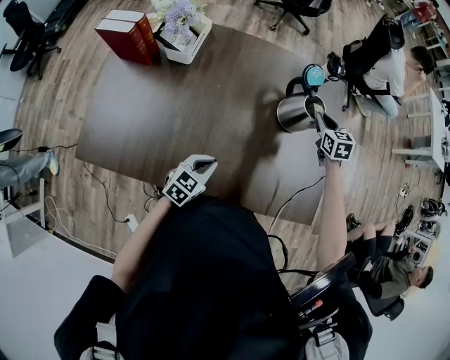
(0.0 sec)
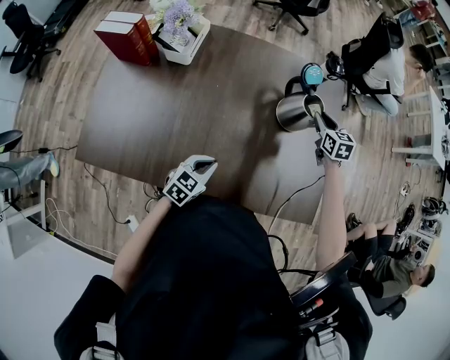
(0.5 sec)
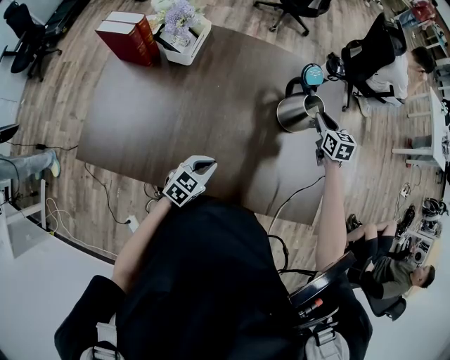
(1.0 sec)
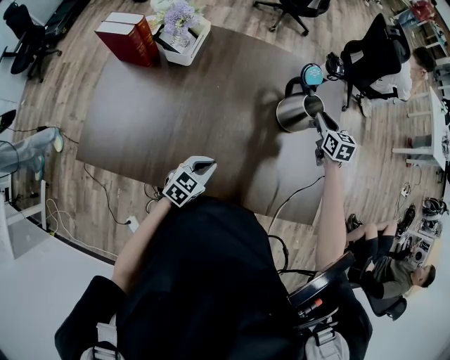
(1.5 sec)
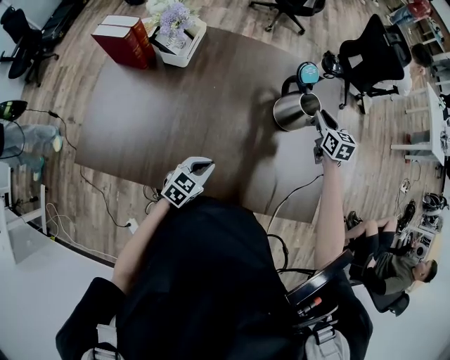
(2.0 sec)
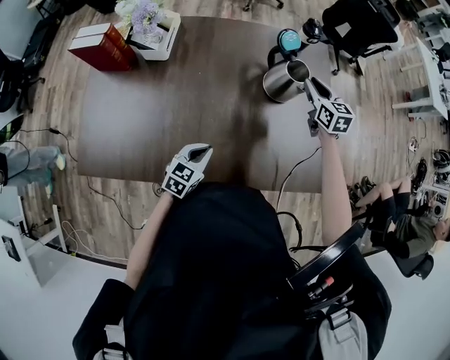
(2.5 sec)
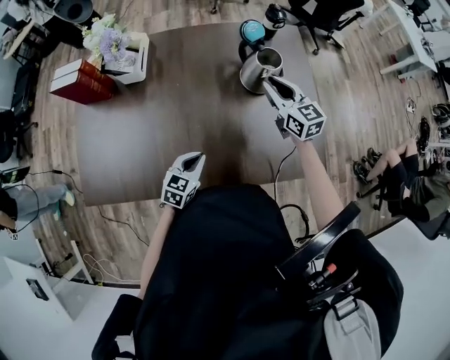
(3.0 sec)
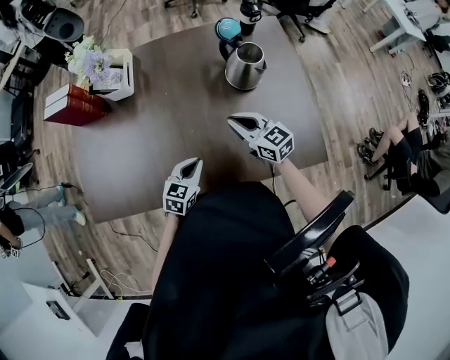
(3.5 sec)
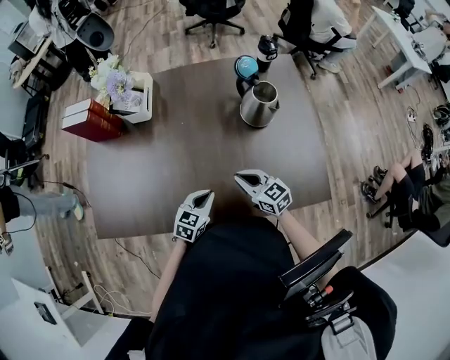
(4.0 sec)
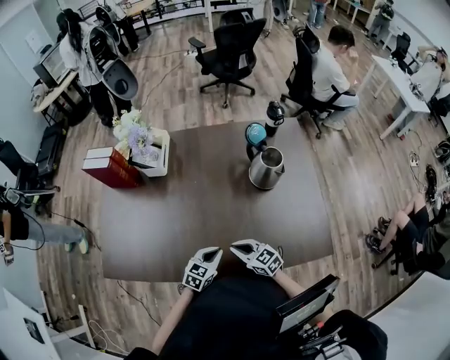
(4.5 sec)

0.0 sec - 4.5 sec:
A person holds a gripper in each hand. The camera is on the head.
0.0 sec - 2.0 sec: The grippers move only a little.
2.0 sec - 4.5 sec: The right gripper shifts about 40 cm backward and to the left, and rotates about 40 degrees.

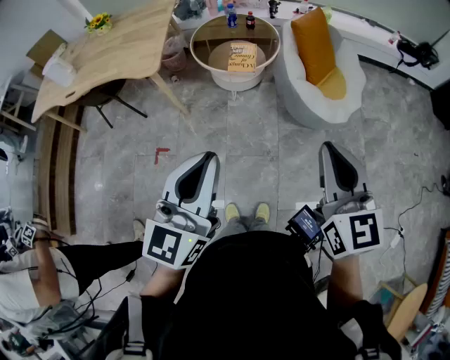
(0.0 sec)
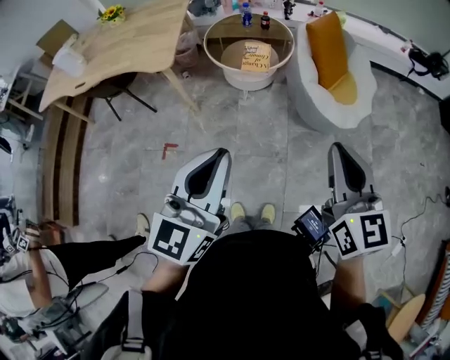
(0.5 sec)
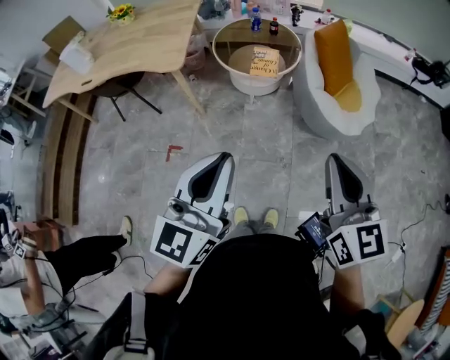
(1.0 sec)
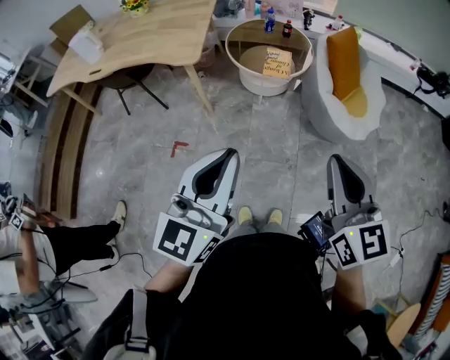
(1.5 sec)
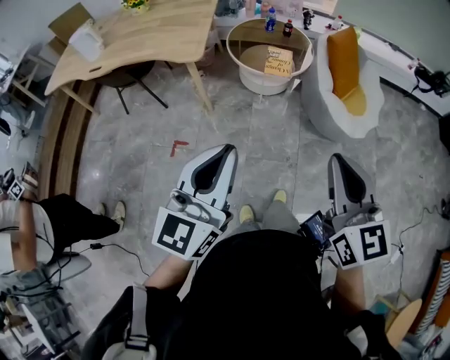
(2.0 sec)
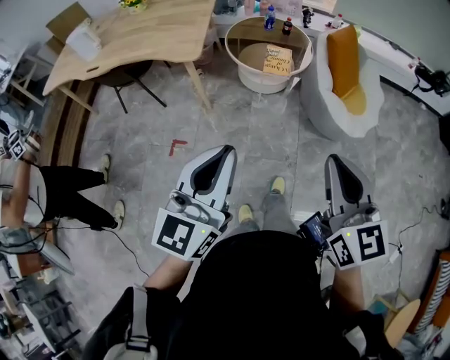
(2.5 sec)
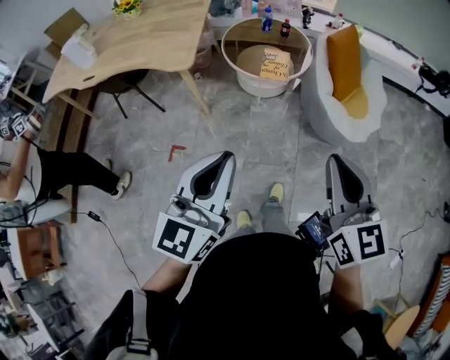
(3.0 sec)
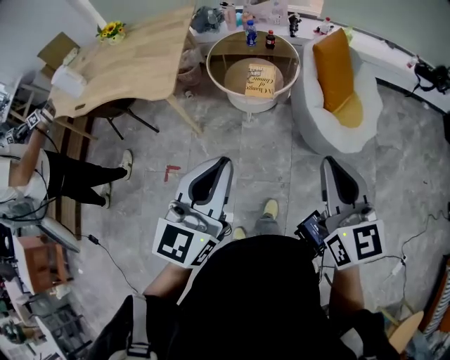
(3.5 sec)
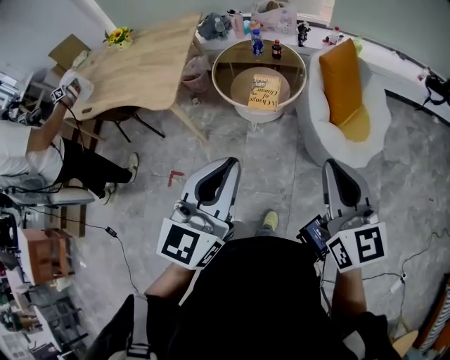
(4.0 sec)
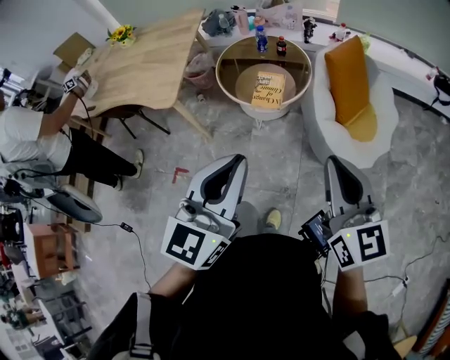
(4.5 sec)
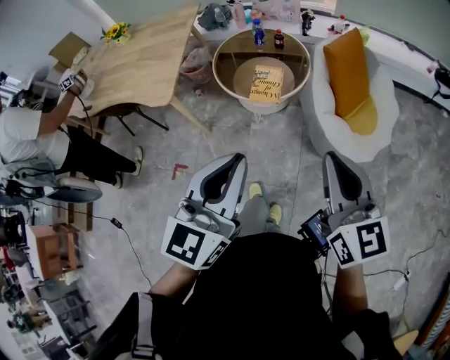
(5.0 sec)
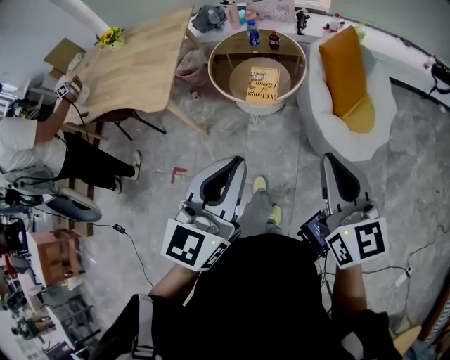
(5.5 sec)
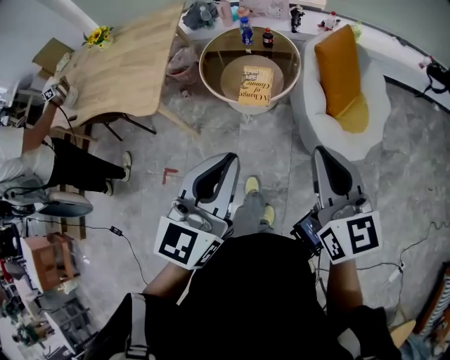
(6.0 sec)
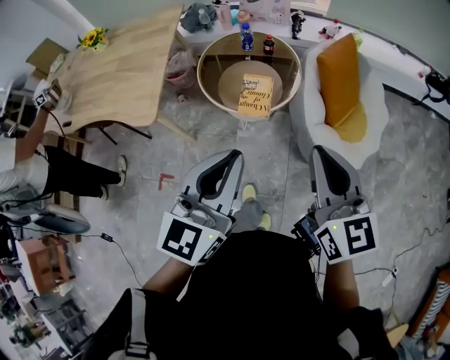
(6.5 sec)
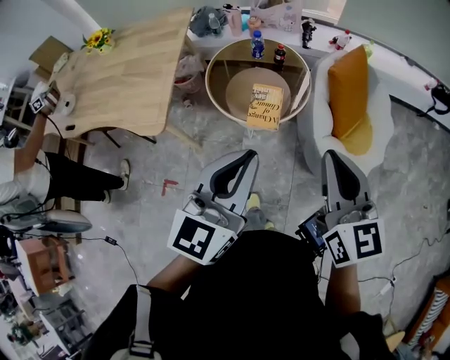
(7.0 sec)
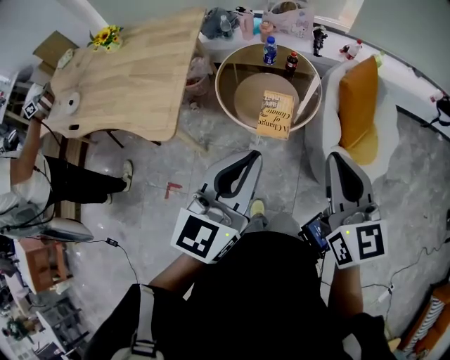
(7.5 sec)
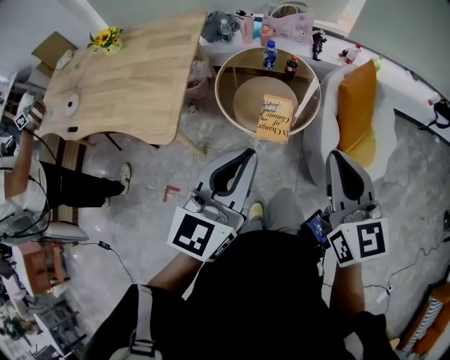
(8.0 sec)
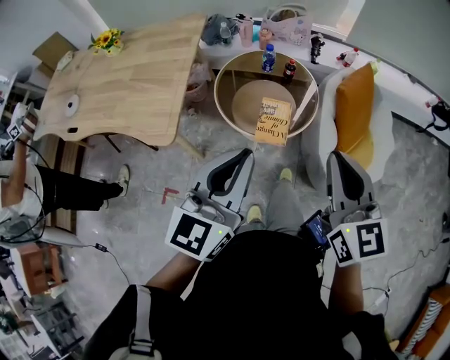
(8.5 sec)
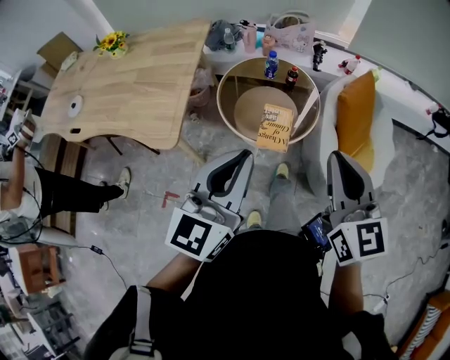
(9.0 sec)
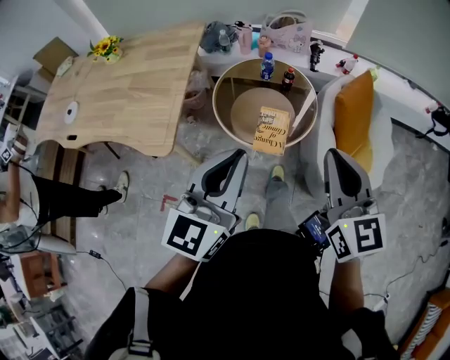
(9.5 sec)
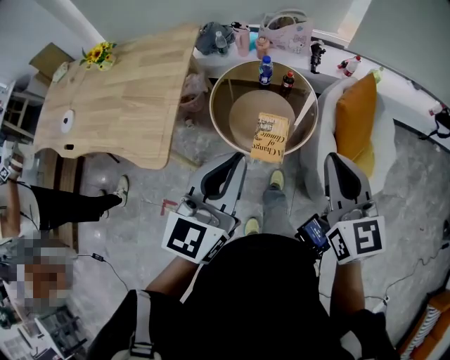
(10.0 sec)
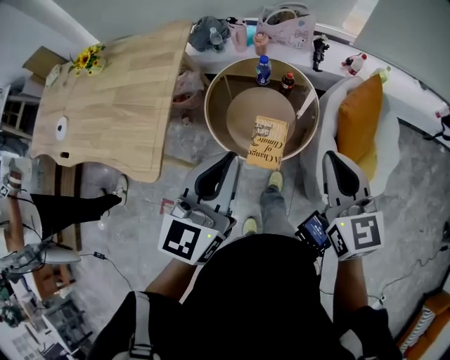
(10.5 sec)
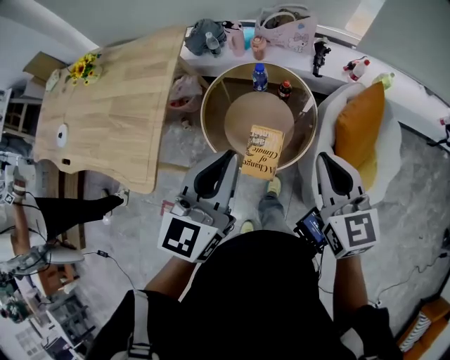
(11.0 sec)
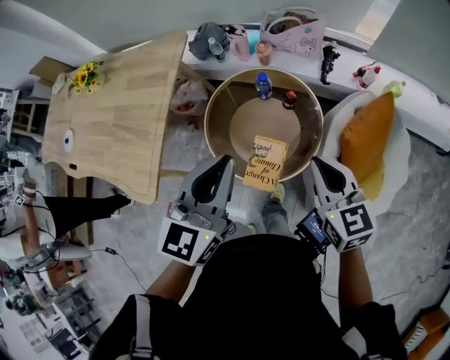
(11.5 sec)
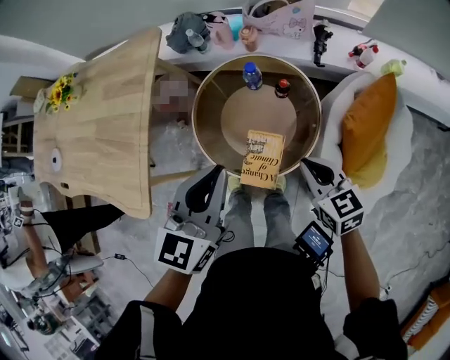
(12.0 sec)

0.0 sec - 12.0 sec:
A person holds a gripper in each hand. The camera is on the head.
0.0 sec - 2.0 sec: The grippers both shift to the left by roughly 15 cm.
2.0 sec - 4.0 sec: Both grippers travel together forward and to the right, some 25 cm.
4.0 sec - 6.0 sec: Both grippers move forward, approximately 10 cm.
6.0 sec - 8.0 sec: Both grippers travel together forward and to the left, approximately 20 cm.
8.0 sec - 10.0 sec: Both grippers move forward, roughly 10 cm.
10.0 sec - 12.0 sec: The grippers both shift forward and downward by some 30 cm. The right gripper turns by approximately 30 degrees.

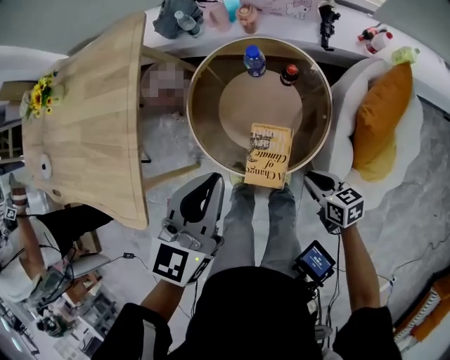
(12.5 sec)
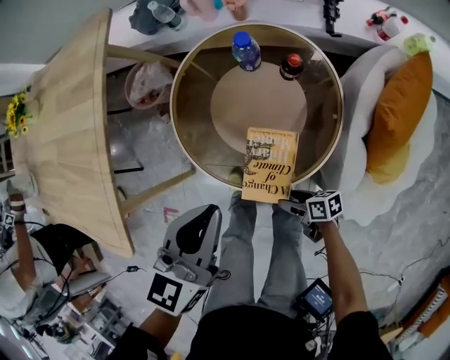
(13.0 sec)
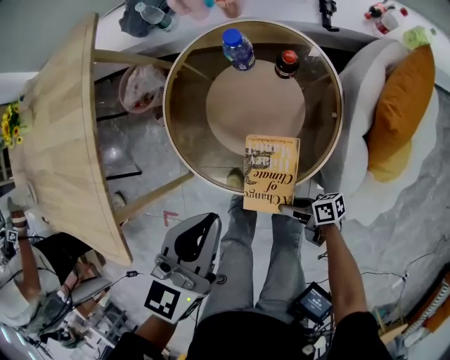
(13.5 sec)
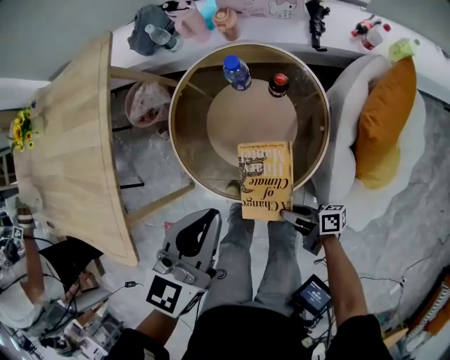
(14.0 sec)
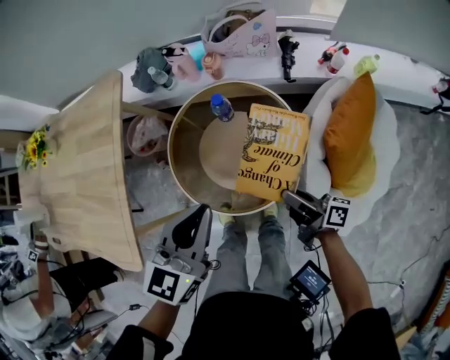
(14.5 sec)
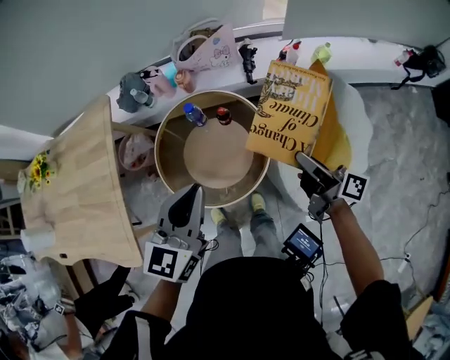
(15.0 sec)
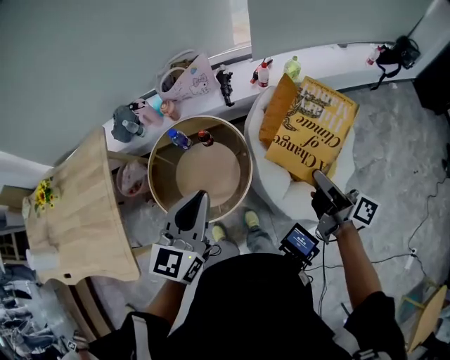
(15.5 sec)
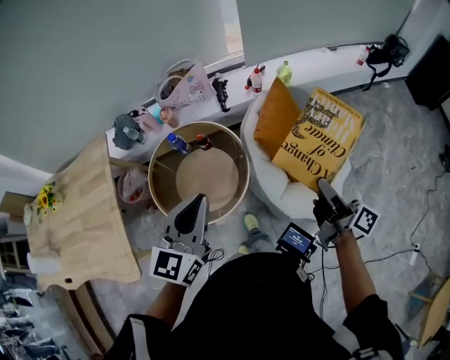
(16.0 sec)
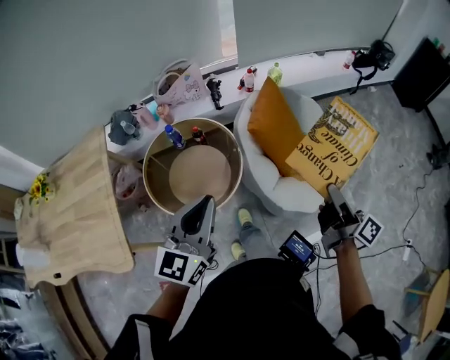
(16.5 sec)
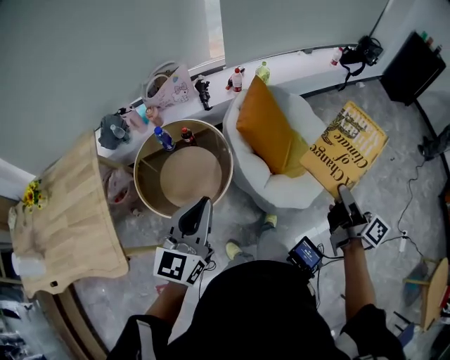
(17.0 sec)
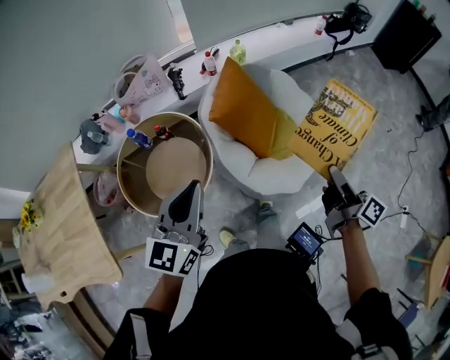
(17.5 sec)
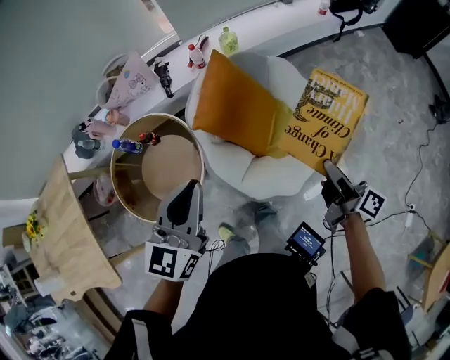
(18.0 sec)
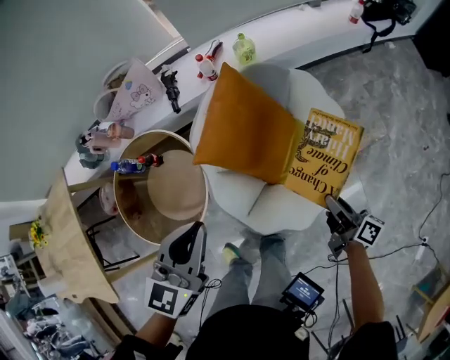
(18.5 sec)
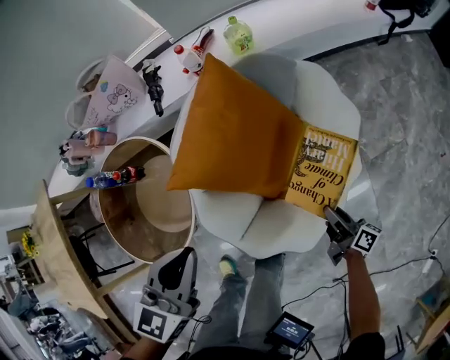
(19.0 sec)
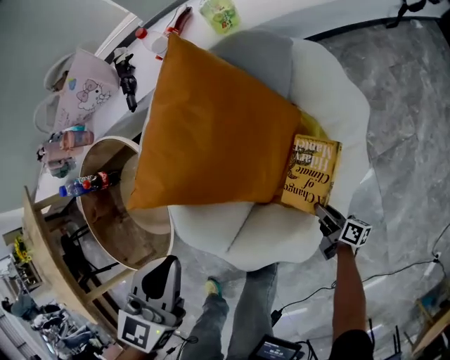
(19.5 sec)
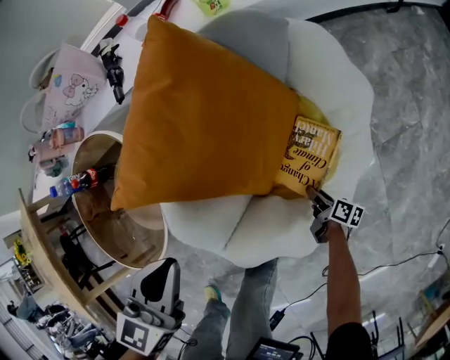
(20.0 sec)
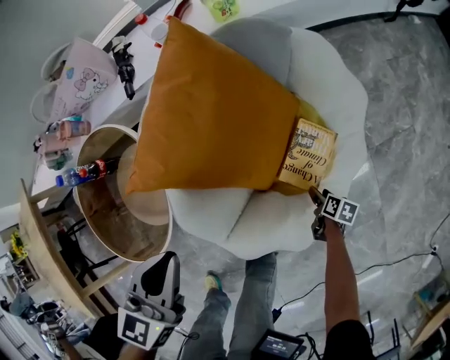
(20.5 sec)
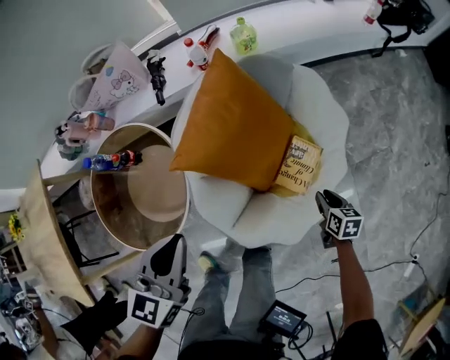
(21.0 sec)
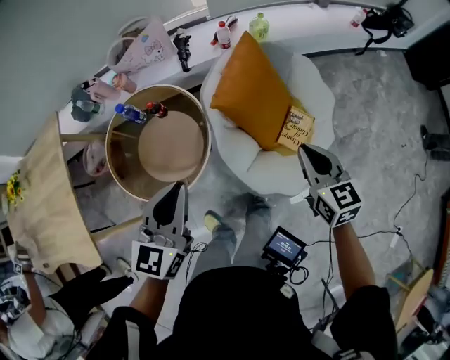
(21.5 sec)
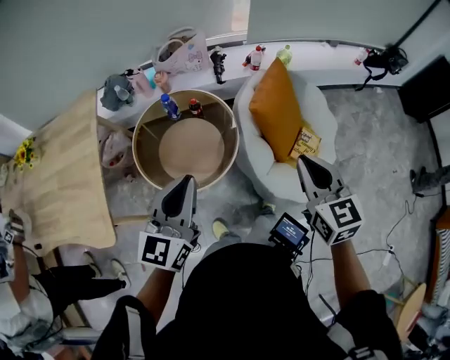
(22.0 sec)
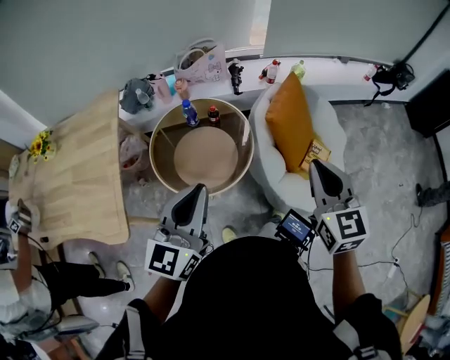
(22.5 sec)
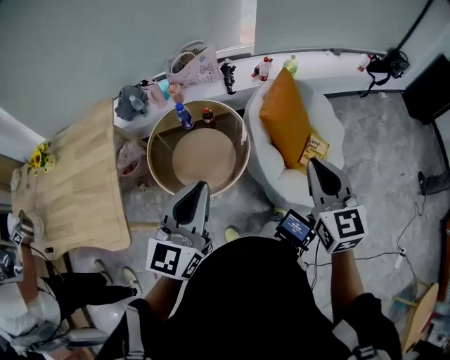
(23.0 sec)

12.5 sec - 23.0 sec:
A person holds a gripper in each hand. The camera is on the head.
12.5 sec - 14.5 sec: The left gripper travels downward and back again, some 10 cm each way, while the right gripper heads forward, covering some 5 cm, travels downward and back again, roughly 20 cm each way, angles its fingers upward, by about 40 degrees, and opens its fingers.
14.5 sec - 16.5 sec: The left gripper shifts by some 25 cm, and swivels approximately 20 degrees. Meanwhile the right gripper changes place by about 40 cm, and swivels some 50 degrees.
16.5 sec - 19.0 sec: The left gripper travels forward, to the right and downward by about 40 cm, and swivels about 20 degrees. The right gripper is displaced downward, to the right and forward by roughly 60 cm, and rotates some 20 degrees.
19.0 sec - 21.0 sec: The left gripper travels downward and back again, roughly 10 cm each way; the right gripper goes downward and returns, some 25 cm each way, tips its fingers downward by about 40 degrees, and opens, then closes again.
21.0 sec - 23.0 sec: The right gripper moves upward and to the left, about 70 cm, tips its fingers upward by some 30 degrees, and closes up; the left gripper is displaced to the left, upward and backward by roughly 40 cm, and changes its angle by about 30 degrees.
